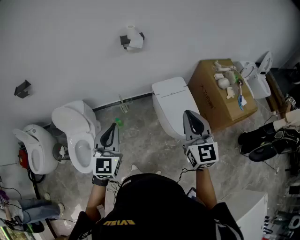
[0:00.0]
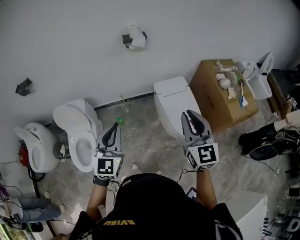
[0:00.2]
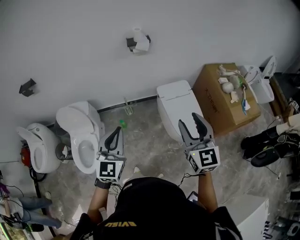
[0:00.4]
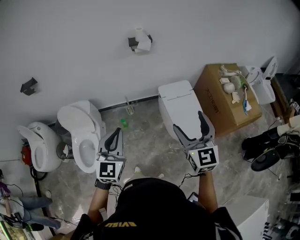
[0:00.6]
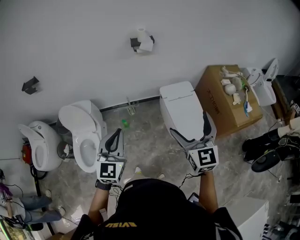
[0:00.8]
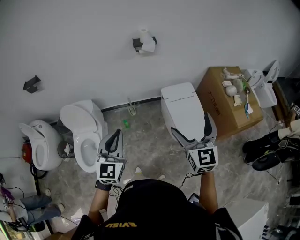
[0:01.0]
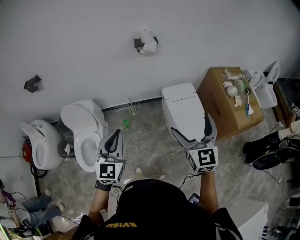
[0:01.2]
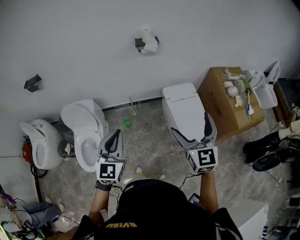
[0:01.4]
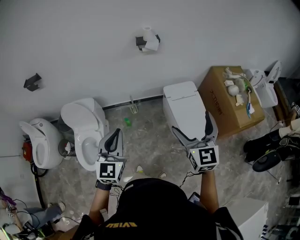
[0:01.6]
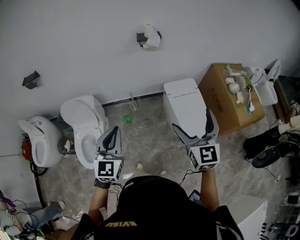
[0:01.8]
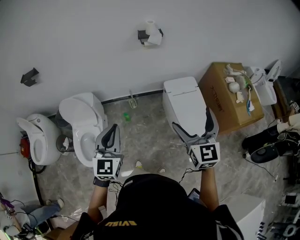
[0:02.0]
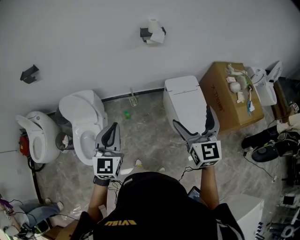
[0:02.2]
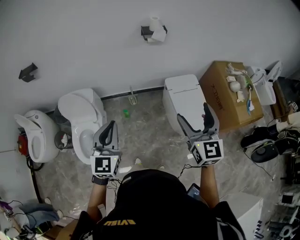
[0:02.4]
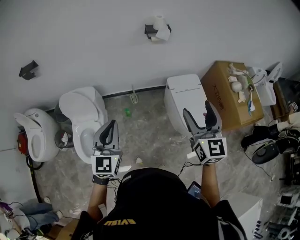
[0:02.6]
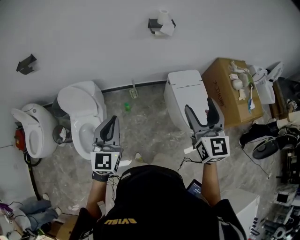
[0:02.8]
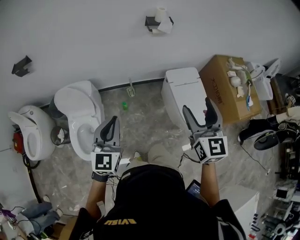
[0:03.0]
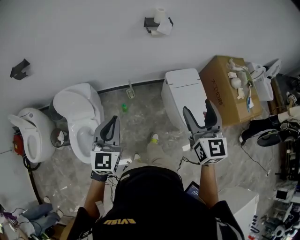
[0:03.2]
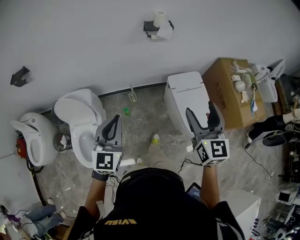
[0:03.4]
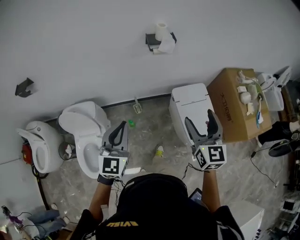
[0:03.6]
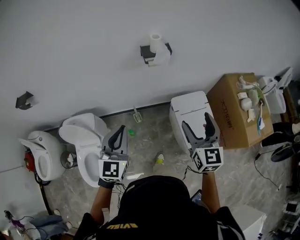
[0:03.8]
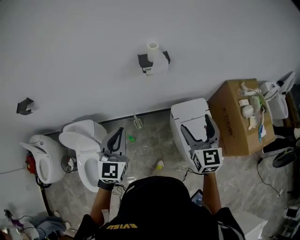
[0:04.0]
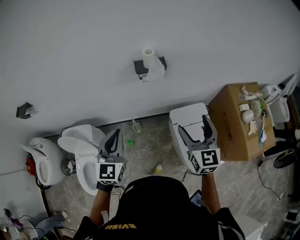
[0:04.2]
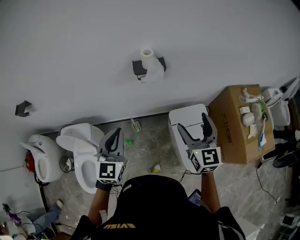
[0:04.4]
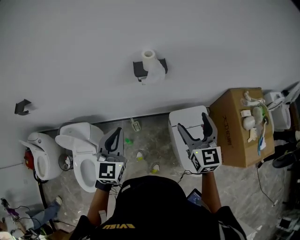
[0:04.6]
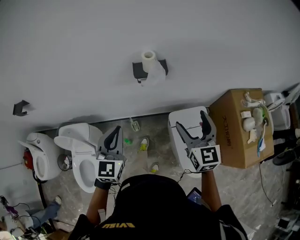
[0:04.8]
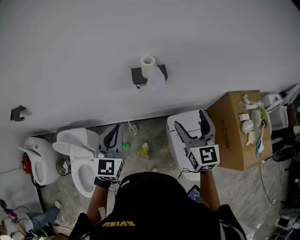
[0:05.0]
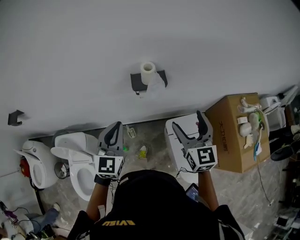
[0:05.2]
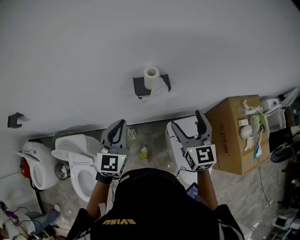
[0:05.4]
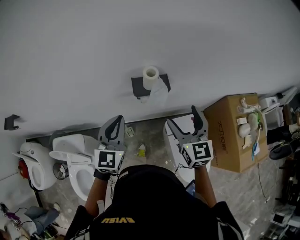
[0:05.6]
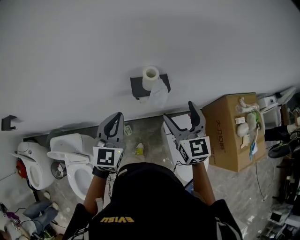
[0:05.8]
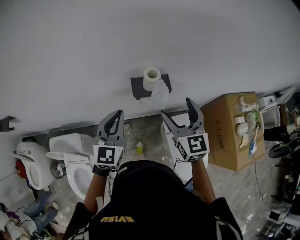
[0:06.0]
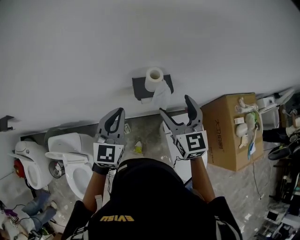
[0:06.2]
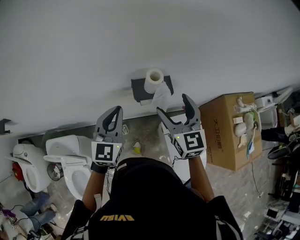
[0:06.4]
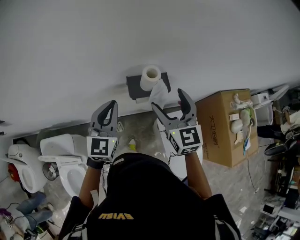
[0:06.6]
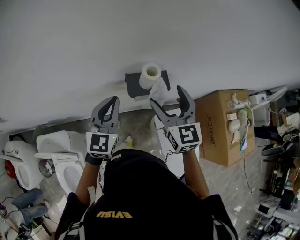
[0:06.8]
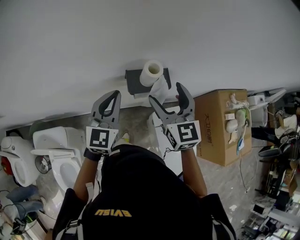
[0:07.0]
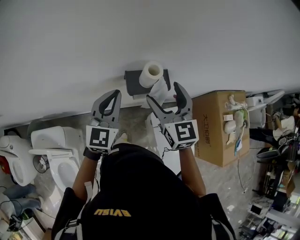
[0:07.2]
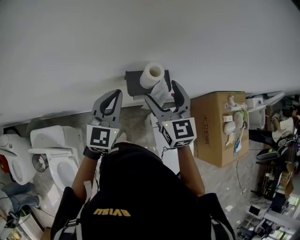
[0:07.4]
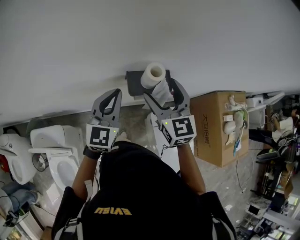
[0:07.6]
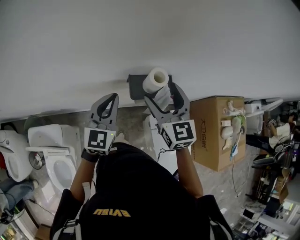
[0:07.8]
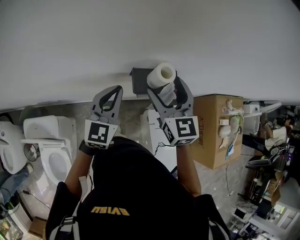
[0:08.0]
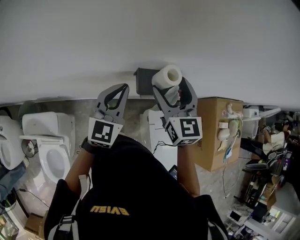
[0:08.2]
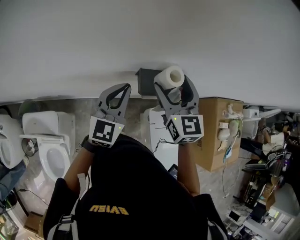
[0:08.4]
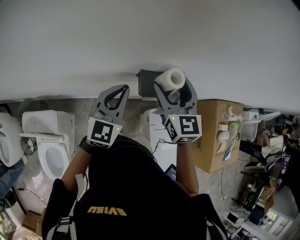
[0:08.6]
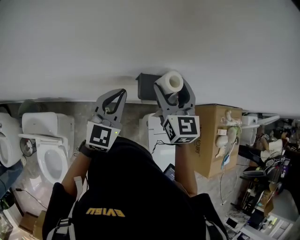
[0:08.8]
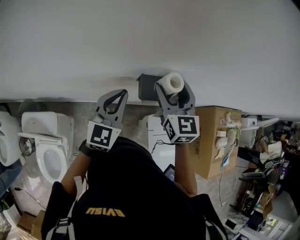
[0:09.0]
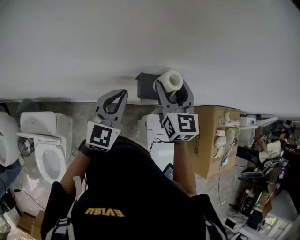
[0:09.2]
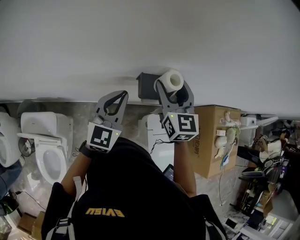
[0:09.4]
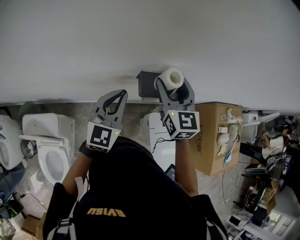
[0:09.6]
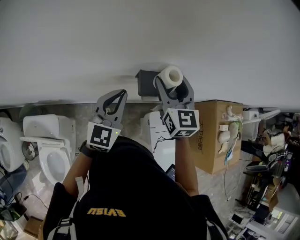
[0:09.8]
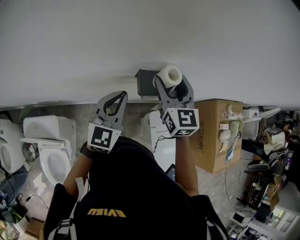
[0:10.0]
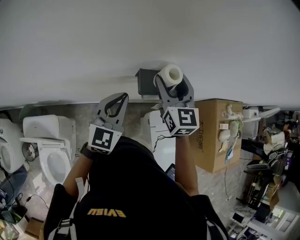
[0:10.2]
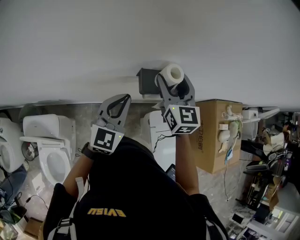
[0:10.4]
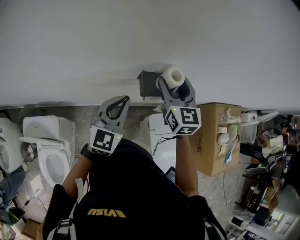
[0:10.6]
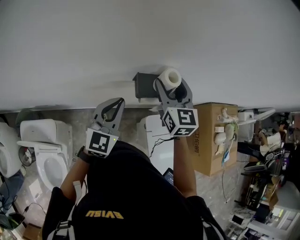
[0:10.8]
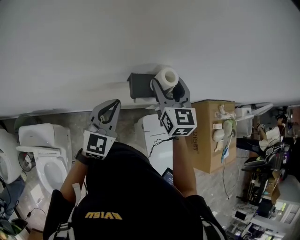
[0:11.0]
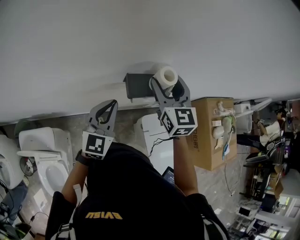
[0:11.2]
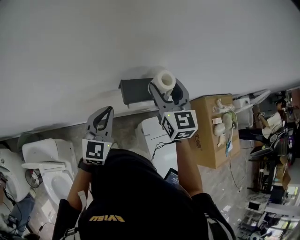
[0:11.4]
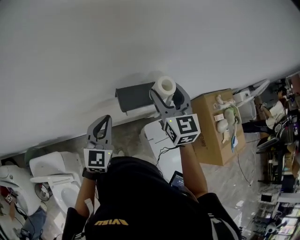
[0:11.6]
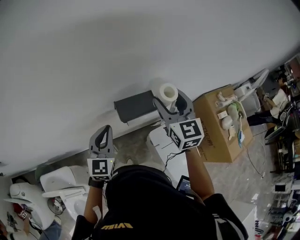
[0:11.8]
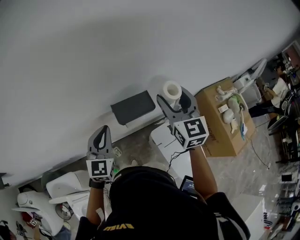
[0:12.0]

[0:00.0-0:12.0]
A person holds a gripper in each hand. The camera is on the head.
0:00.0 to 0:01.6: The right gripper opens up.
0:01.6 to 0:03.0: Both grippers travel together to the left, roughly 10 cm. The right gripper closes up.
0:03.0 to 0:04.4: The right gripper heads forward, covering some 30 cm. Meanwhile the left gripper goes approximately 30 cm forward and to the right.
0:04.4 to 0:06.0: The two grippers go roughly 20 cm forward.
0:06.0 to 0:07.6: The right gripper goes some 10 cm forward and to the left. The left gripper travels forward by some 10 cm.
0:07.6 to 0:10.4: The grippers make only small movements.
0:10.4 to 0:12.0: The right gripper travels to the right and upward by some 15 cm.

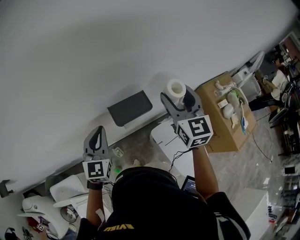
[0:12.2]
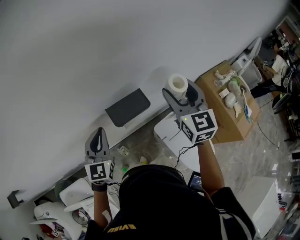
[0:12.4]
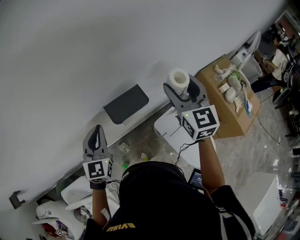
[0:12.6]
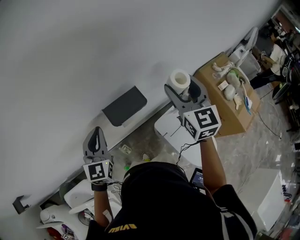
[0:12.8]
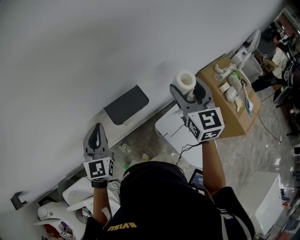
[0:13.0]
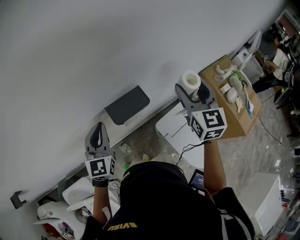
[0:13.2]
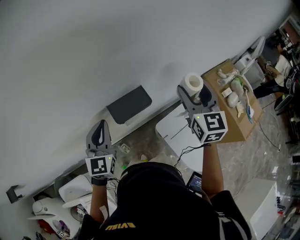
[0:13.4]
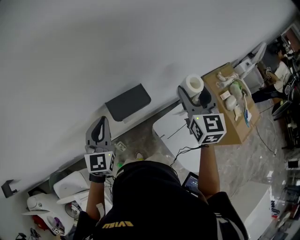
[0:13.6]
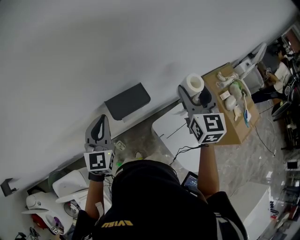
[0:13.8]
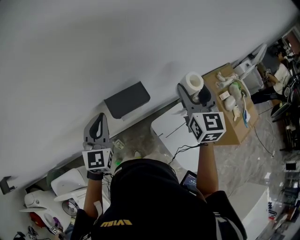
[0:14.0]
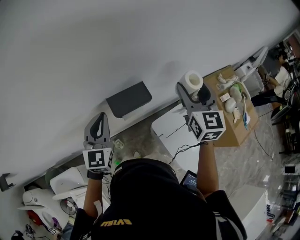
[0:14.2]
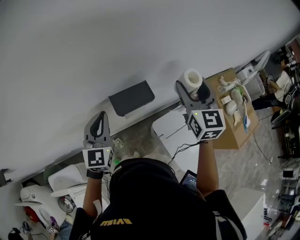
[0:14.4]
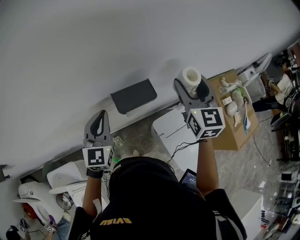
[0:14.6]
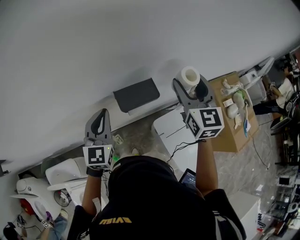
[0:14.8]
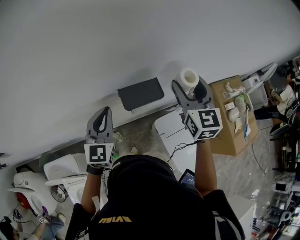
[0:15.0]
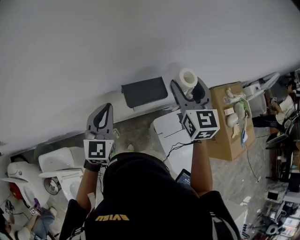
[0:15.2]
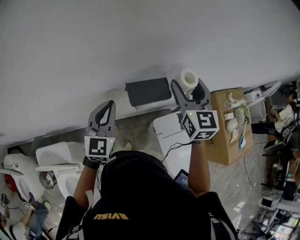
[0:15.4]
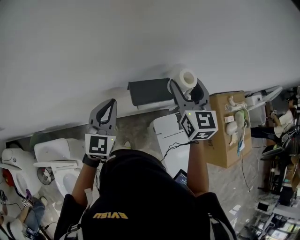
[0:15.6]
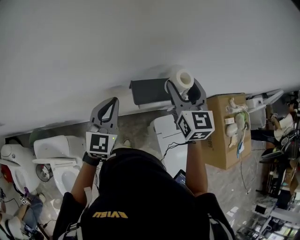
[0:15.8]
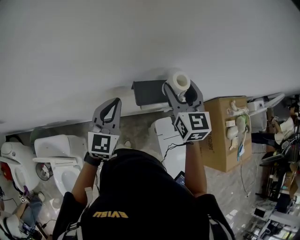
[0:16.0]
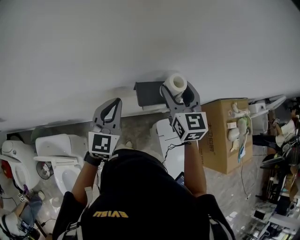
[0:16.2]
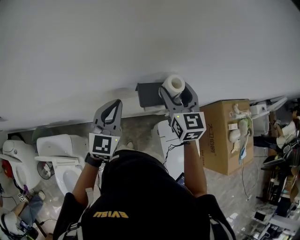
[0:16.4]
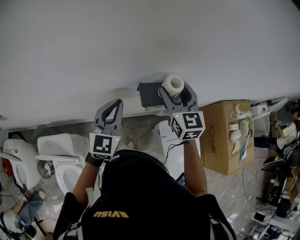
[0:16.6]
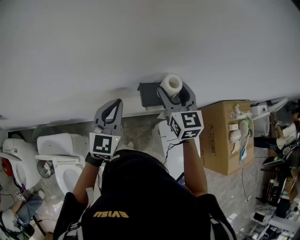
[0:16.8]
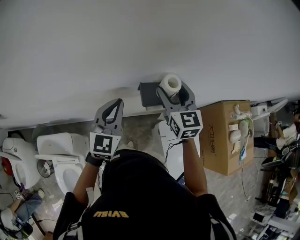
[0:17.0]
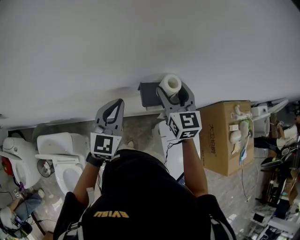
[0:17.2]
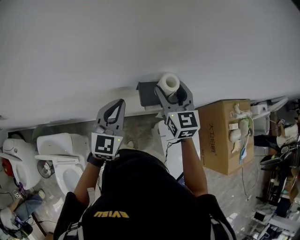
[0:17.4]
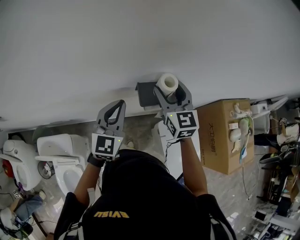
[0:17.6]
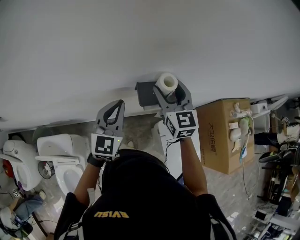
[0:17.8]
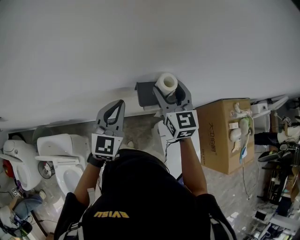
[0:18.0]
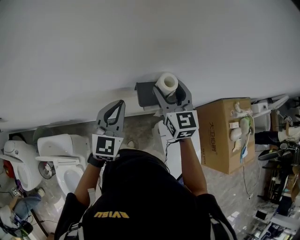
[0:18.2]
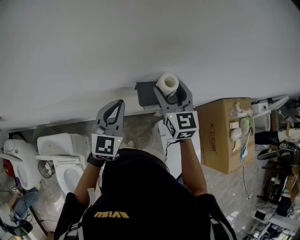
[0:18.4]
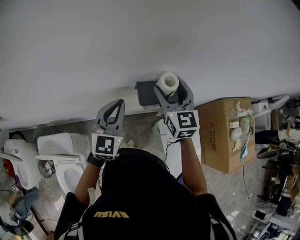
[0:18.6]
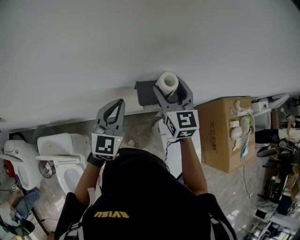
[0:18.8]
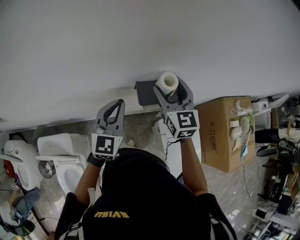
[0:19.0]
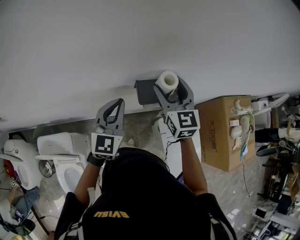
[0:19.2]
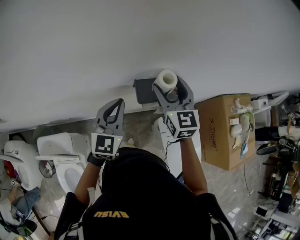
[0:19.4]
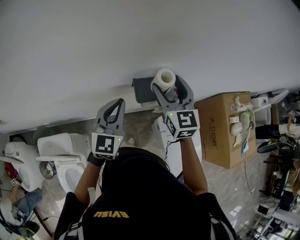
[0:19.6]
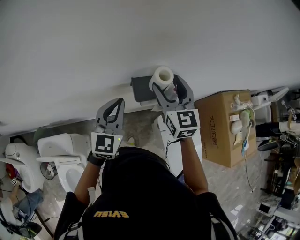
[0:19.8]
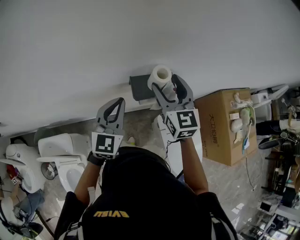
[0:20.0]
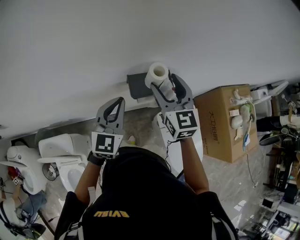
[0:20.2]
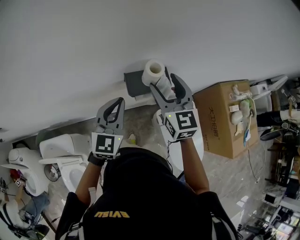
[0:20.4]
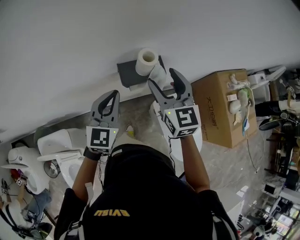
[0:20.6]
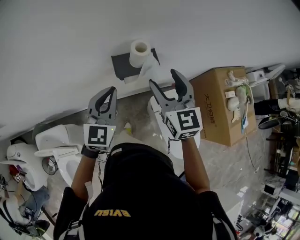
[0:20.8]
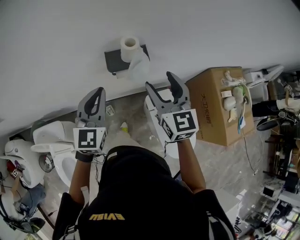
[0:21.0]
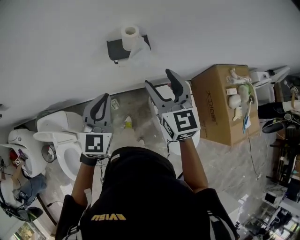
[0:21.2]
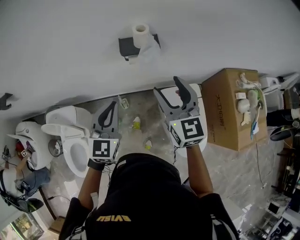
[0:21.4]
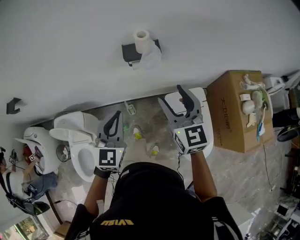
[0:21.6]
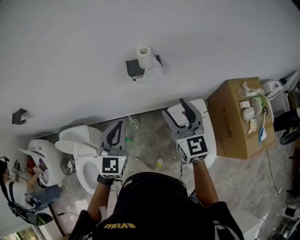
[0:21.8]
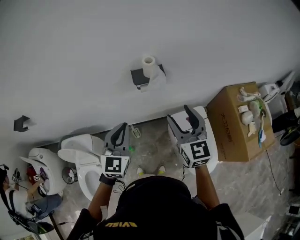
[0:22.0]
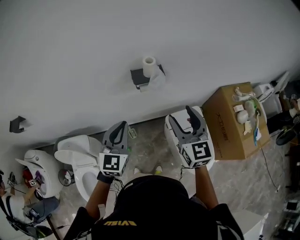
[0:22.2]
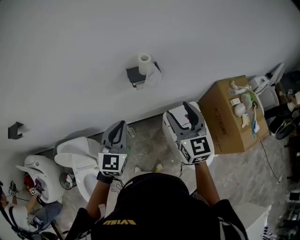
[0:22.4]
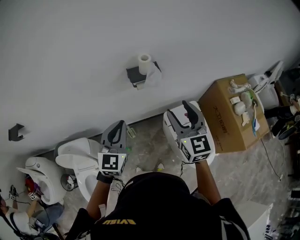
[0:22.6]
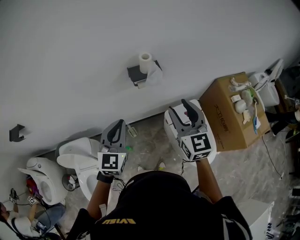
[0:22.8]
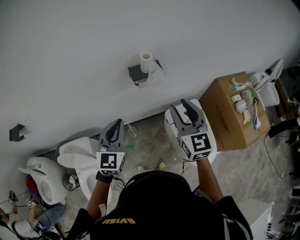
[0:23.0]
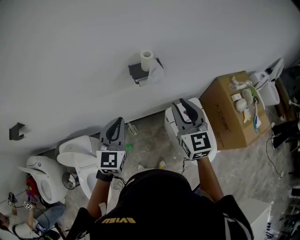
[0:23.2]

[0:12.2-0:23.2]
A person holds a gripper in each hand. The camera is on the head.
0:12.2 to 0:13.8: The right gripper goes approximately 5 cm to the right.
0:13.8 to 0:15.4: The right gripper heads to the left, covering about 15 cm.
0:15.4 to 0:17.0: The right gripper travels to the left and downward by about 10 cm.
0:17.0 to 0:18.4: The two grippers keep their place.
0:18.4 to 0:20.0: The grippers move only a little.
0:20.0 to 0:21.6: The grippers both shift backward by some 20 cm.
0:21.6 to 0:23.2: The right gripper shifts by roughly 5 cm, while the left gripper is displaced to the left by approximately 5 cm.

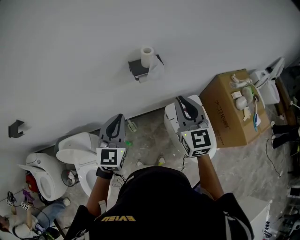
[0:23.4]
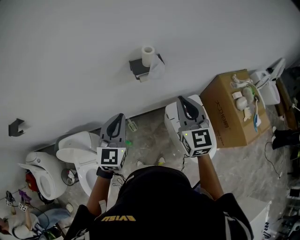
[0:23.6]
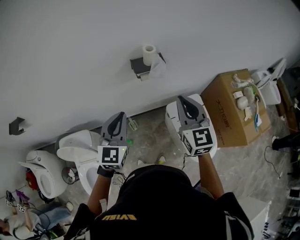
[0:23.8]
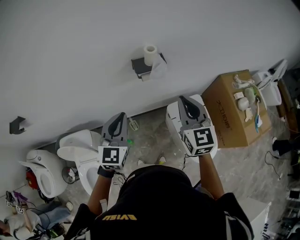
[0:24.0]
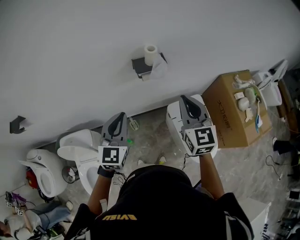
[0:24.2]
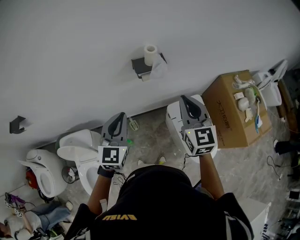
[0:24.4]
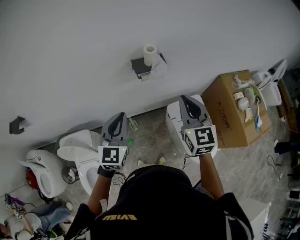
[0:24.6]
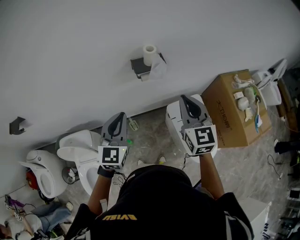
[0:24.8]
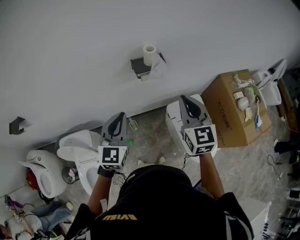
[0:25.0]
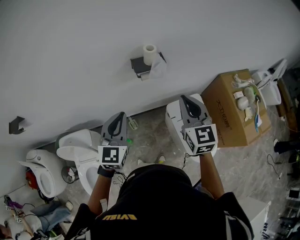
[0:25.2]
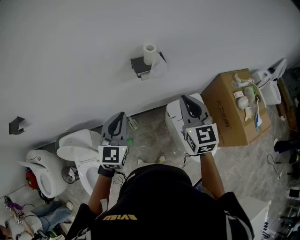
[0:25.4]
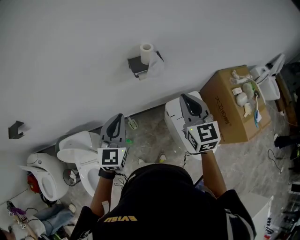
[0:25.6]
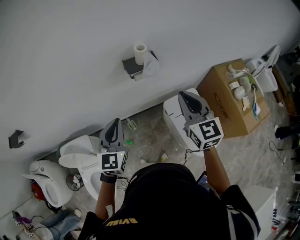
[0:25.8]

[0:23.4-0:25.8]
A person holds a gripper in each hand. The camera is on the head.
0:23.4 to 0:24.6: The two grippers keep their place.
0:24.6 to 0:25.8: The grippers stay close to where they were, moving slightly.
